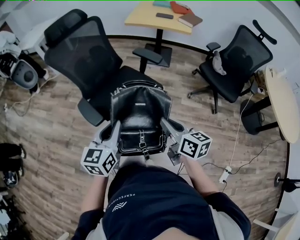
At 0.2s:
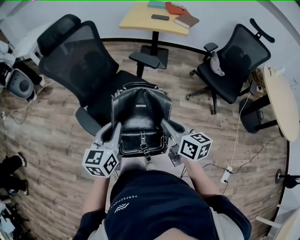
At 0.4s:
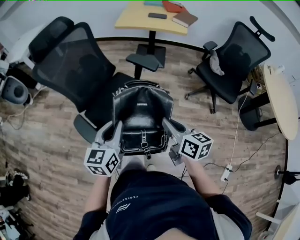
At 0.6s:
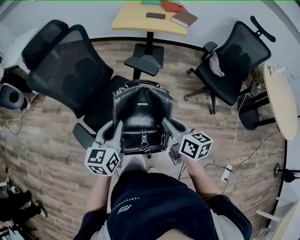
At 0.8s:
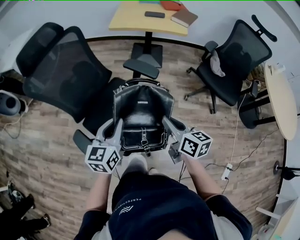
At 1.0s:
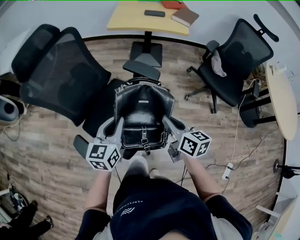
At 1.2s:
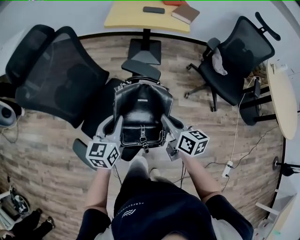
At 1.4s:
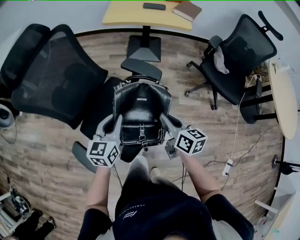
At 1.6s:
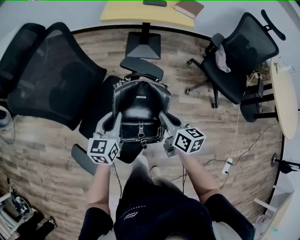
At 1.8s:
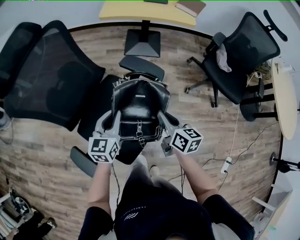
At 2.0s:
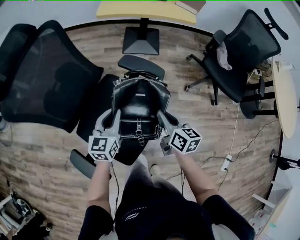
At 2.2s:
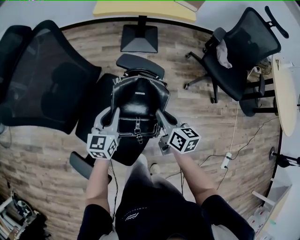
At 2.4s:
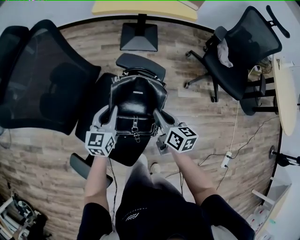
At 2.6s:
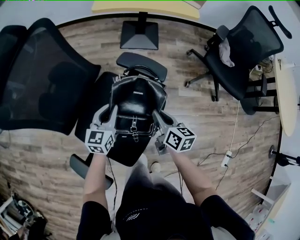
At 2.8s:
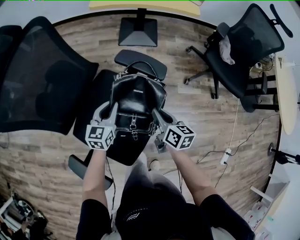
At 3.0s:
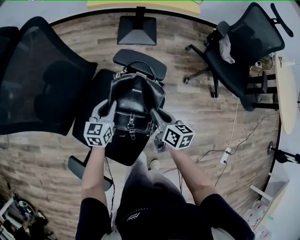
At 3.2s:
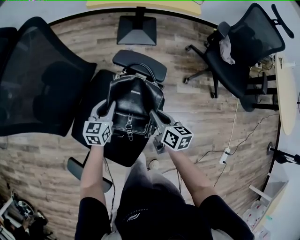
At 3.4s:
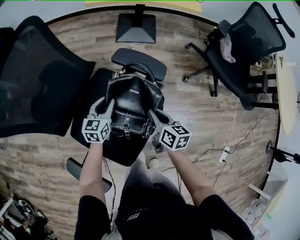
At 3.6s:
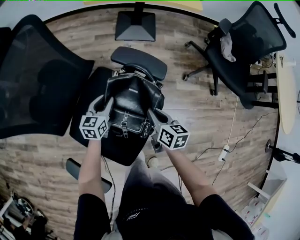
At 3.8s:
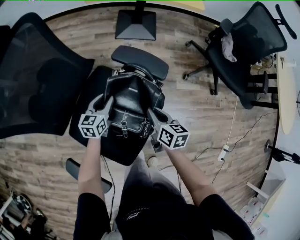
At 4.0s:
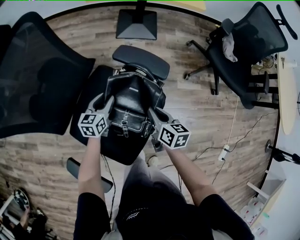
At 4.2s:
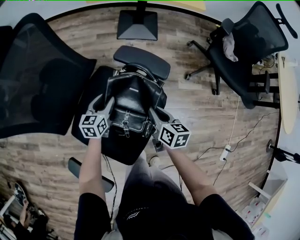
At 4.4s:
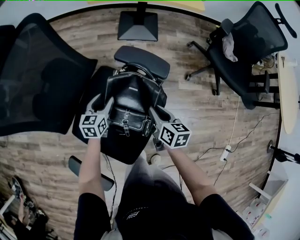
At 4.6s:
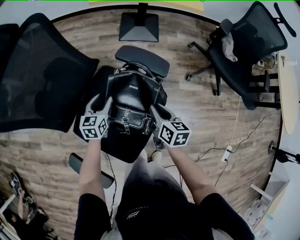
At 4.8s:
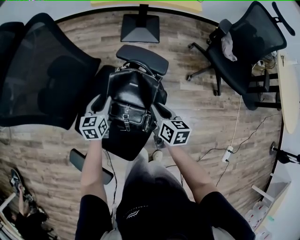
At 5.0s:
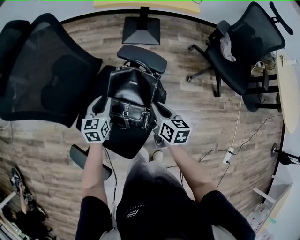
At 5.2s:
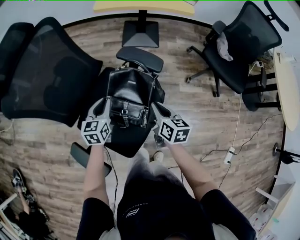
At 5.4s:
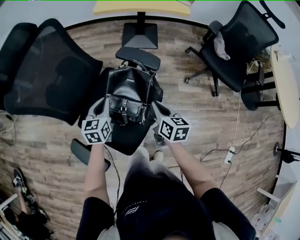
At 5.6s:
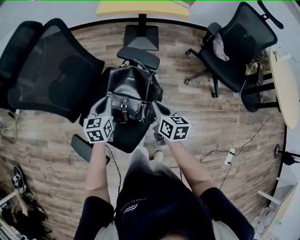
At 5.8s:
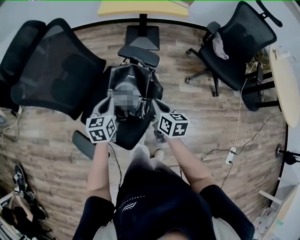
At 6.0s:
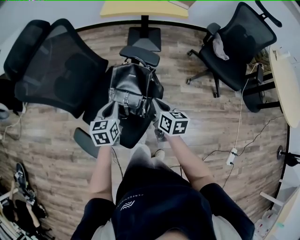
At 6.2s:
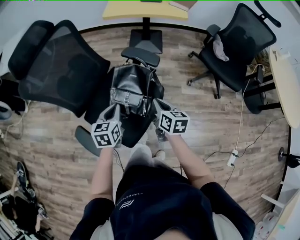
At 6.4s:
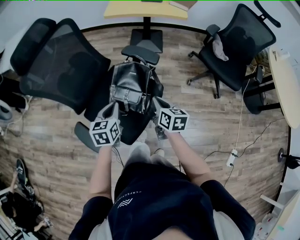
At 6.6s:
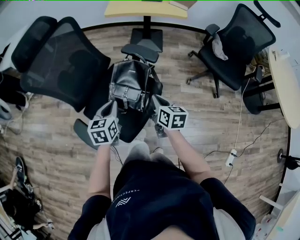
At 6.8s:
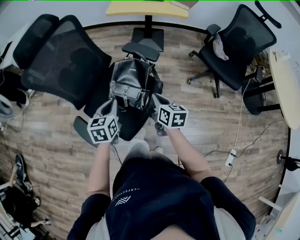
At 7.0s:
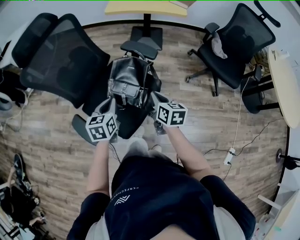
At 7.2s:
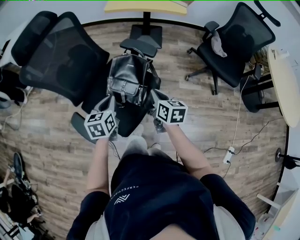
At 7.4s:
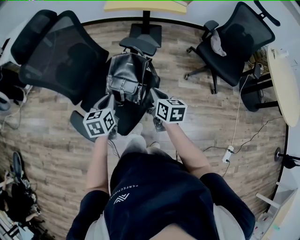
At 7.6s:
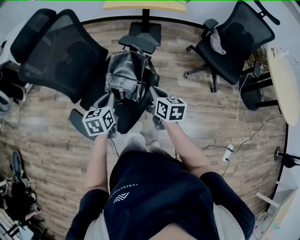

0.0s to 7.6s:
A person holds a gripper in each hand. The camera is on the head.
0.0s to 1.6s: Both grippers travel together forward, about 30 cm.
1.6s to 3.0s: The left gripper moves downward and forward, roughly 15 cm; the right gripper is displaced downward by some 10 cm.
3.0s to 4.6s: The left gripper moves roughly 5 cm, and opens its fingers.
4.6s to 6.0s: The left gripper is displaced backward and upward by approximately 20 cm, and closes up. Meanwhile the right gripper heads upward and backward, covering approximately 10 cm.
6.0s to 7.6s: The left gripper heads backward, covering roughly 5 cm.

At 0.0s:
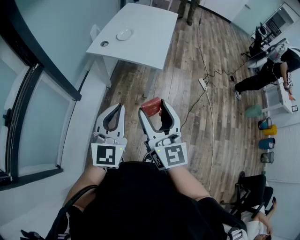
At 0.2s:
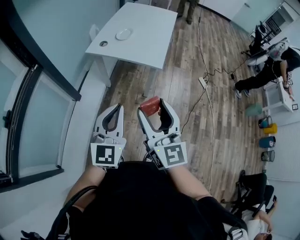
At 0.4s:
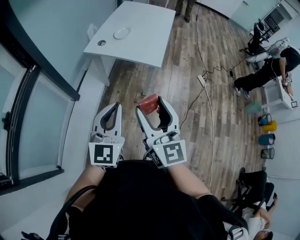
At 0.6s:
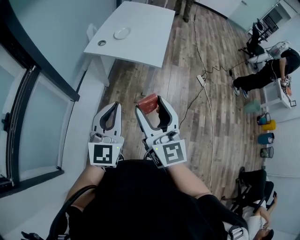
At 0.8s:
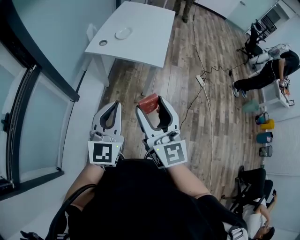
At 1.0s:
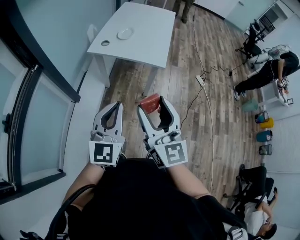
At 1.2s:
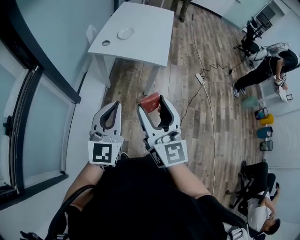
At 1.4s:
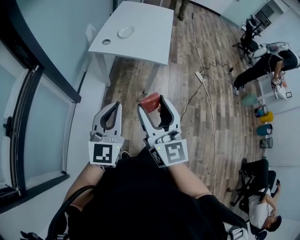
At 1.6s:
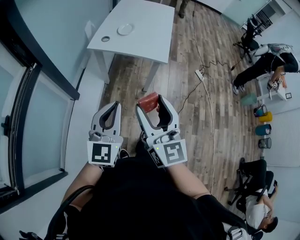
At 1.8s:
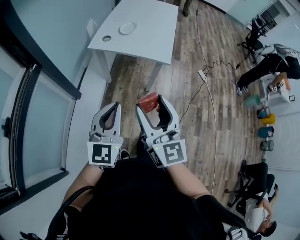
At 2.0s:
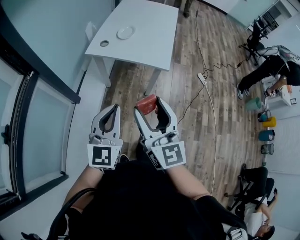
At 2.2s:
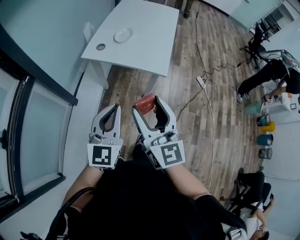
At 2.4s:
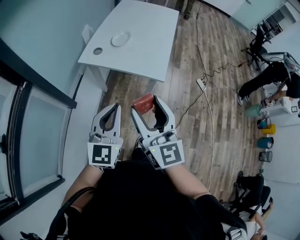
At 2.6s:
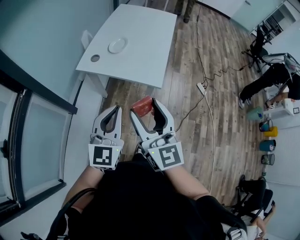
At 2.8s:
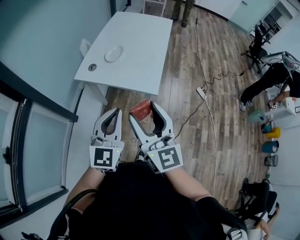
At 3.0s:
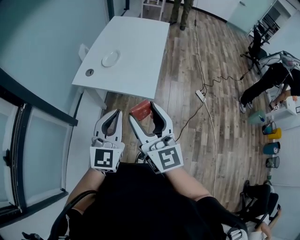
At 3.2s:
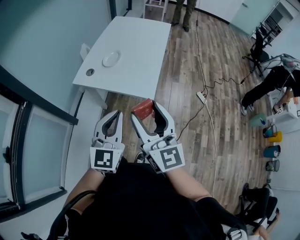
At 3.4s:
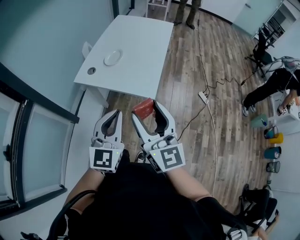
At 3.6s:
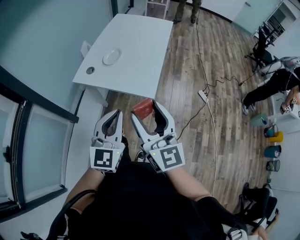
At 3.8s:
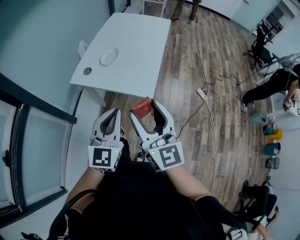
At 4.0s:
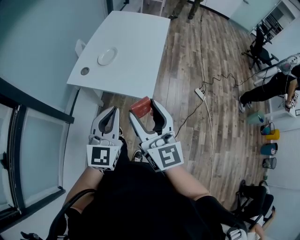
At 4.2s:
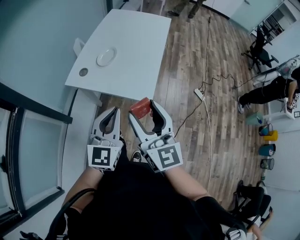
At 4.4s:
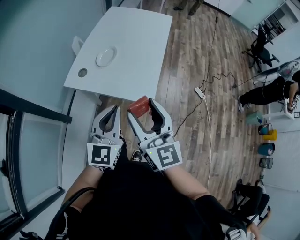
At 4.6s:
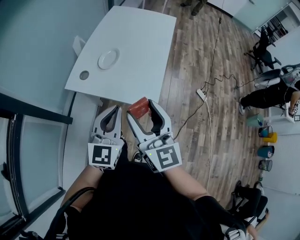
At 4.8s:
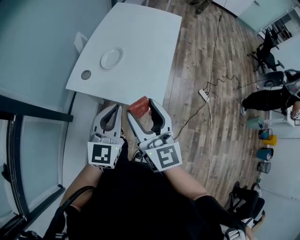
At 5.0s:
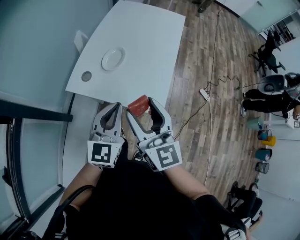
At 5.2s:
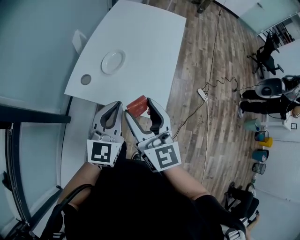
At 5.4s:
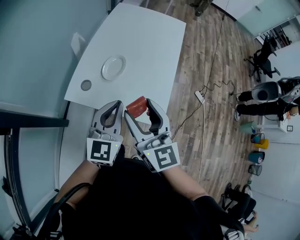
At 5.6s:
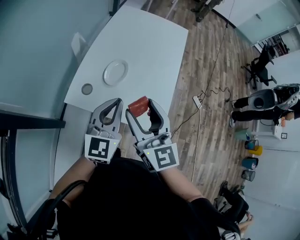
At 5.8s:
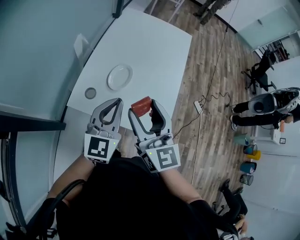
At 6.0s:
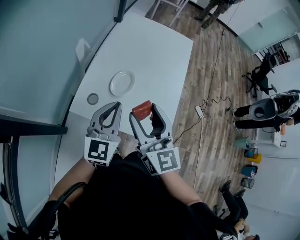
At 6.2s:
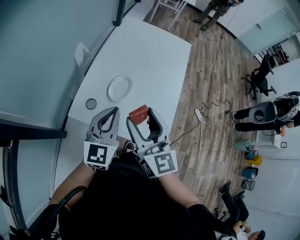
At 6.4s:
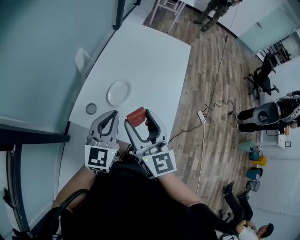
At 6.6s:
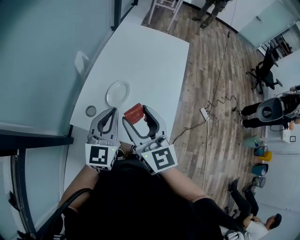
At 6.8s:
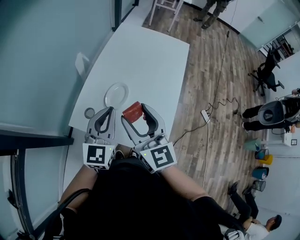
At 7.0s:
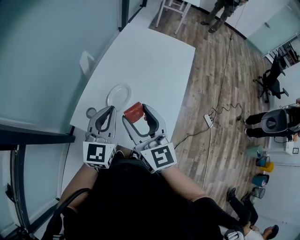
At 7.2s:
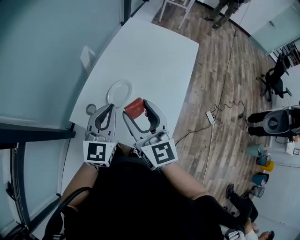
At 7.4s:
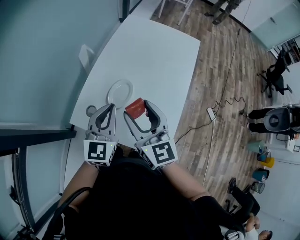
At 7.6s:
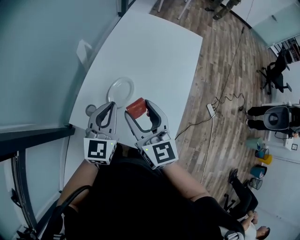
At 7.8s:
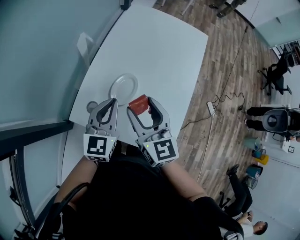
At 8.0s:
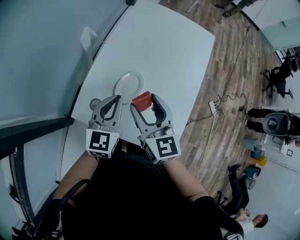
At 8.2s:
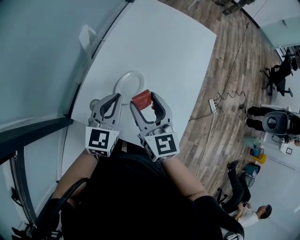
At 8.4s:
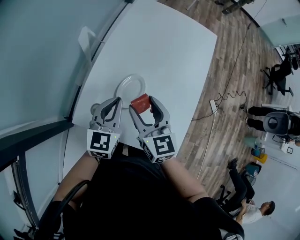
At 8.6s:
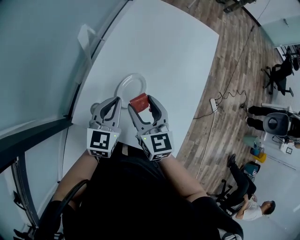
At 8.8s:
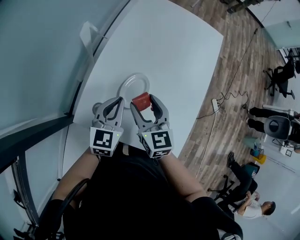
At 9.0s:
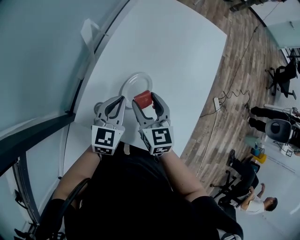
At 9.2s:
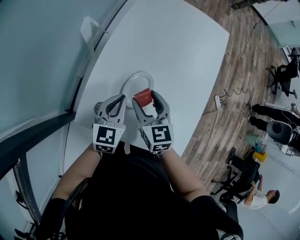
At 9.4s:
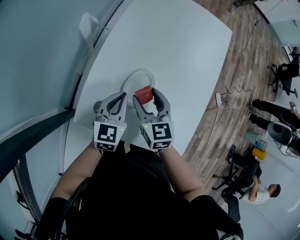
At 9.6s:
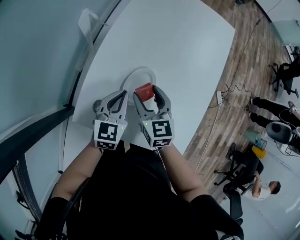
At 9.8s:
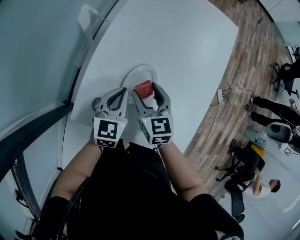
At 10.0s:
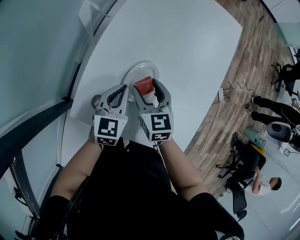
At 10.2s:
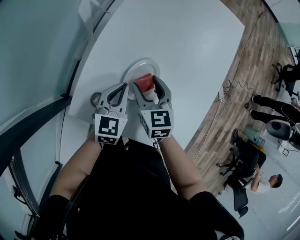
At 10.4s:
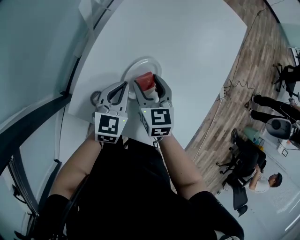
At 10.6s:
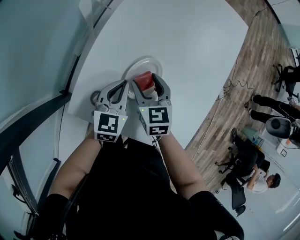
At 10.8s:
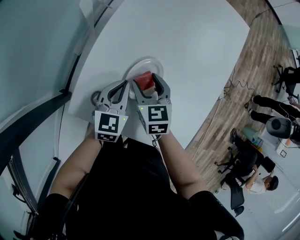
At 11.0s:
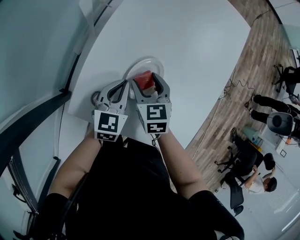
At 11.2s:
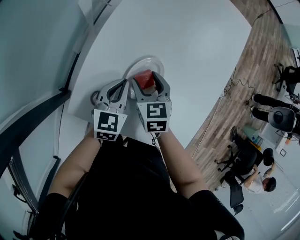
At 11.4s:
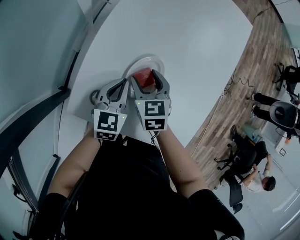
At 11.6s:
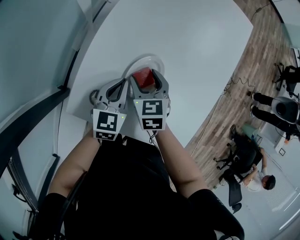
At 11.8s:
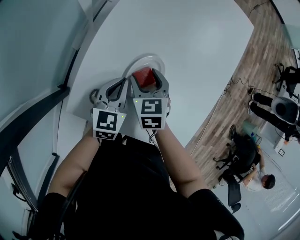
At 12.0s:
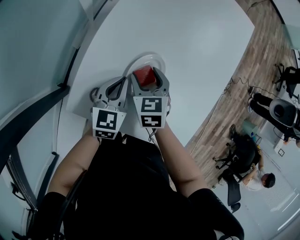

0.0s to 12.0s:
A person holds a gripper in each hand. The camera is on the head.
0.0s to 1.6s: The grippers both shift to the left by about 10 cm.
1.6s to 3.0s: Both grippers move forward and to the right, approximately 25 cm.
3.0s to 4.4s: Both grippers move forward, roughly 10 cm.
4.4s to 6.0s: The grippers both shift forward and to the left by roughly 25 cm.
6.0s to 7.6s: Both grippers travel together forward, approximately 10 cm.
7.6s to 9.0s: The grippers both shift downward and forward by approximately 15 cm.
9.0s to 10.4s: Both grippers travel together downward, roughly 10 cm.
10.4s to 12.0s: The grippers make only small movements.

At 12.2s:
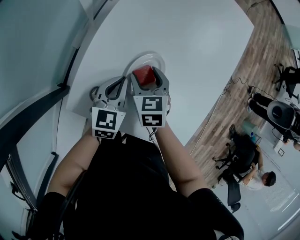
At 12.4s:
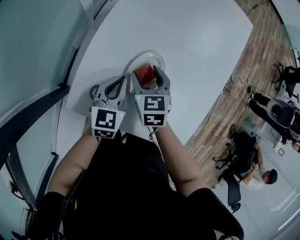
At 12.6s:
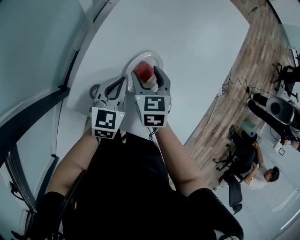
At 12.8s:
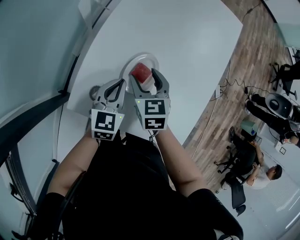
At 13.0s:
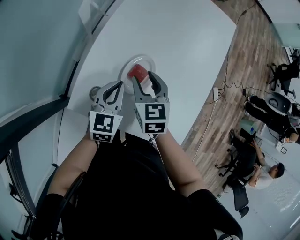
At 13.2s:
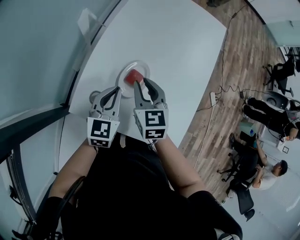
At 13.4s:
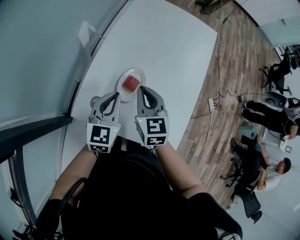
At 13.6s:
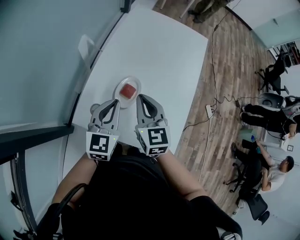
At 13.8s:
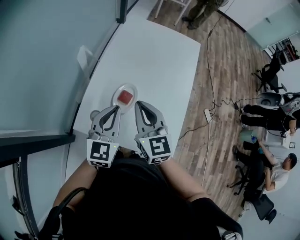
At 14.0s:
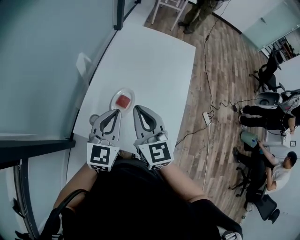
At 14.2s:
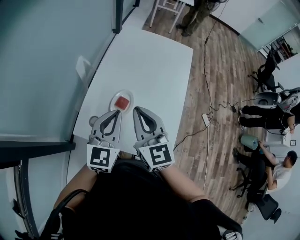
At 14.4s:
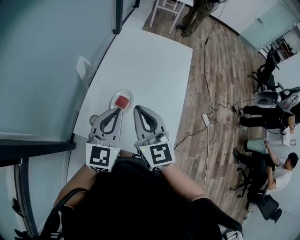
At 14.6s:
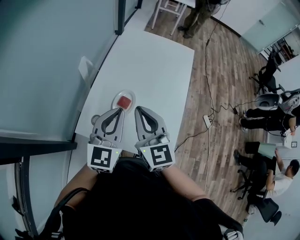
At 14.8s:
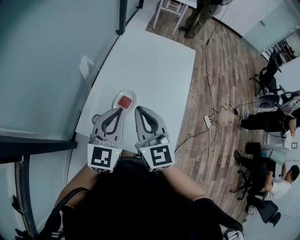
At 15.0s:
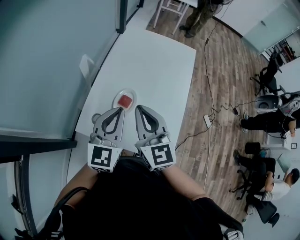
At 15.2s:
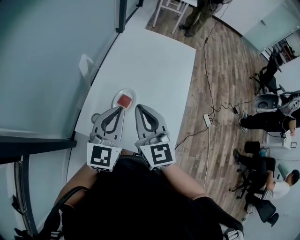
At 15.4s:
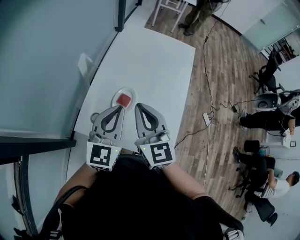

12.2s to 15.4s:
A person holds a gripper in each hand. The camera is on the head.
12.2s to 13.8s: The two grippers go about 20 cm upward. The left gripper rotates approximately 20 degrees; the right gripper tips its fingers upward by about 40 degrees, and closes.
13.8s to 15.4s: The grippers both shift upward by approximately 5 cm.

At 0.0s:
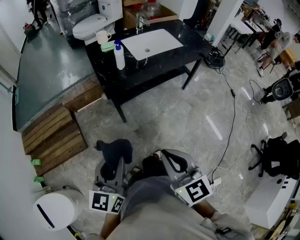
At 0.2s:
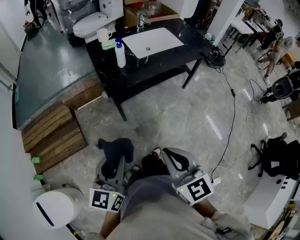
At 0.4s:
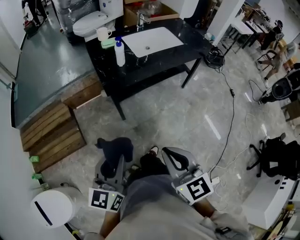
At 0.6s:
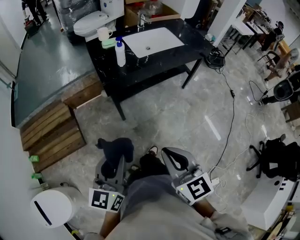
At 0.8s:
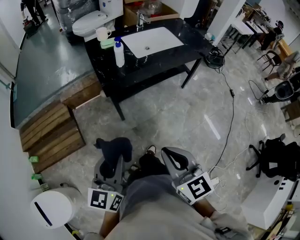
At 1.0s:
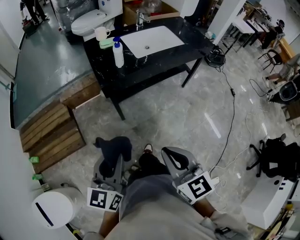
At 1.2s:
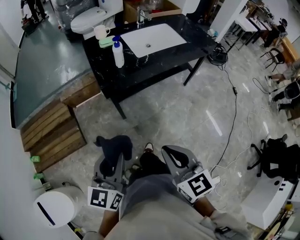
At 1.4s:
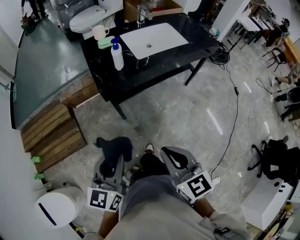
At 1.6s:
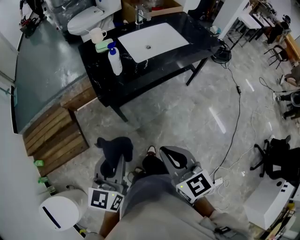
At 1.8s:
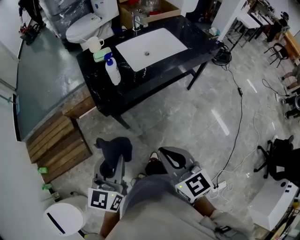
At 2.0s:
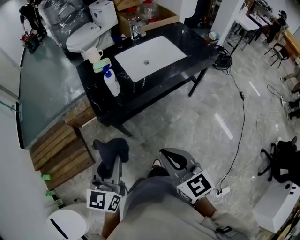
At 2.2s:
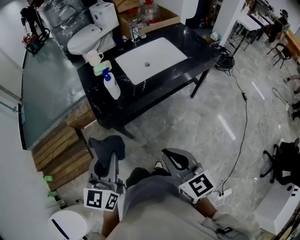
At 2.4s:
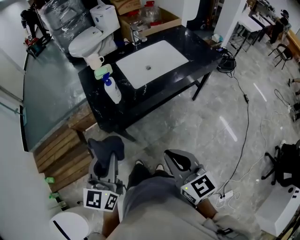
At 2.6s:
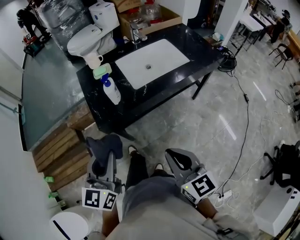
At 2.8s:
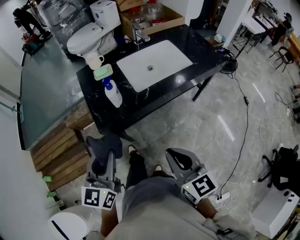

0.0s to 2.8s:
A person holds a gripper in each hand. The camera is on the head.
0.0s to 1.4s: The grippers both shift forward by roughly 5 cm.
1.4s to 2.8s: The left gripper goes roughly 20 cm forward. Meanwhile the right gripper travels forward and to the right by approximately 20 cm.
